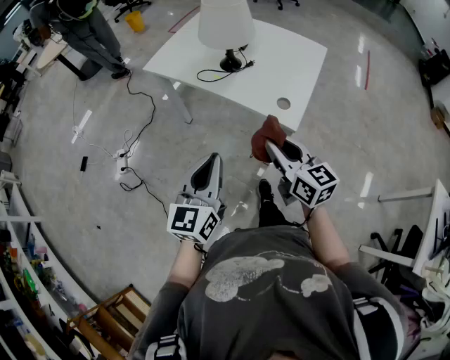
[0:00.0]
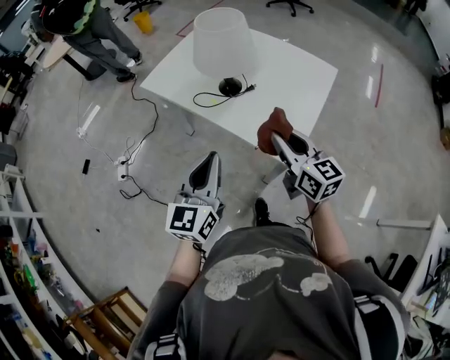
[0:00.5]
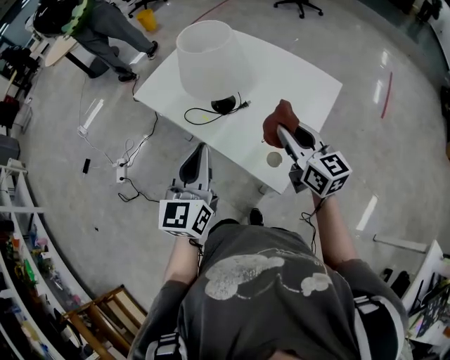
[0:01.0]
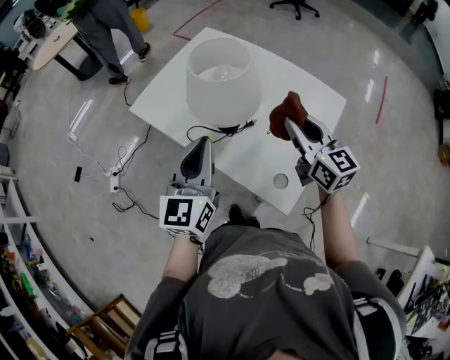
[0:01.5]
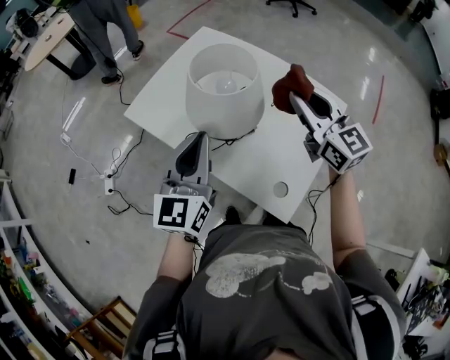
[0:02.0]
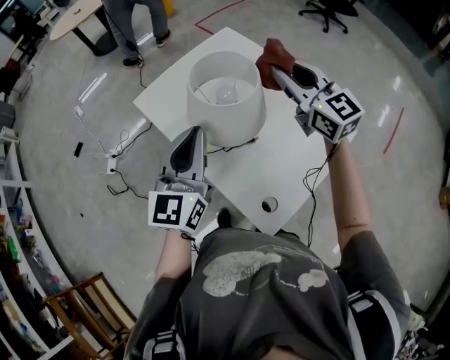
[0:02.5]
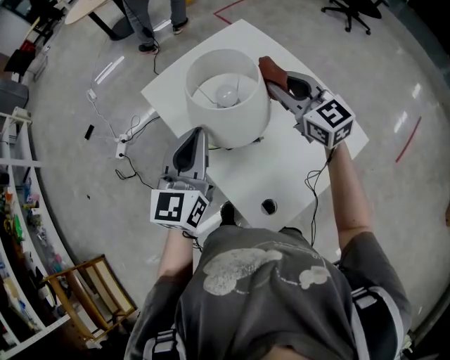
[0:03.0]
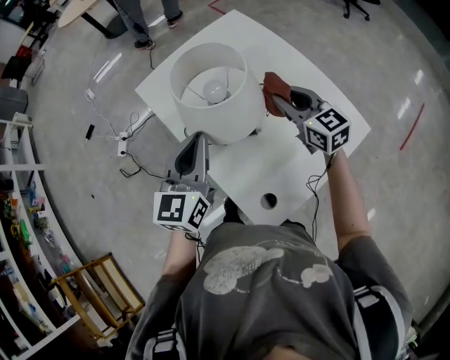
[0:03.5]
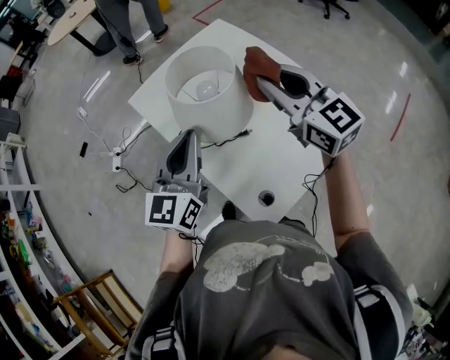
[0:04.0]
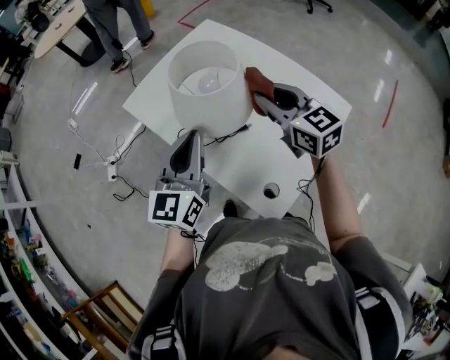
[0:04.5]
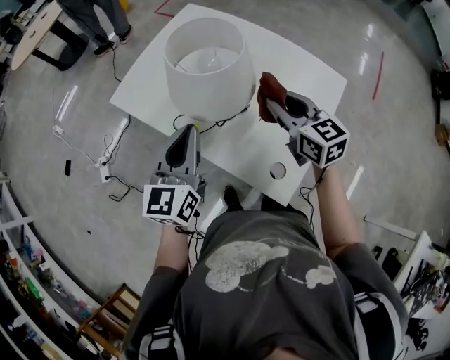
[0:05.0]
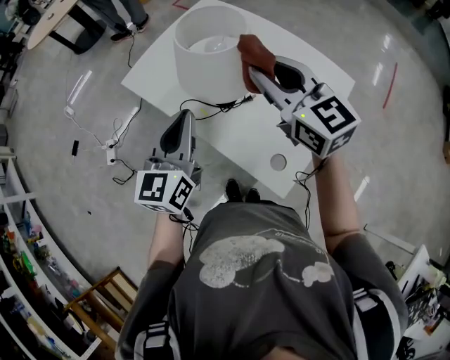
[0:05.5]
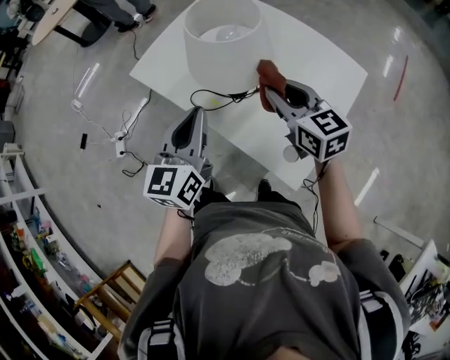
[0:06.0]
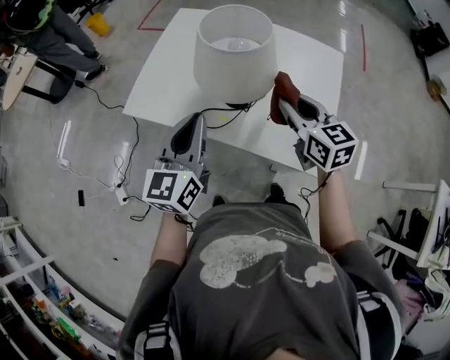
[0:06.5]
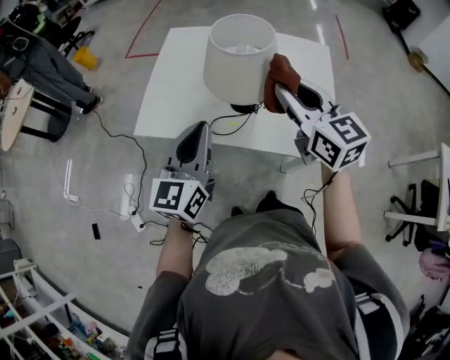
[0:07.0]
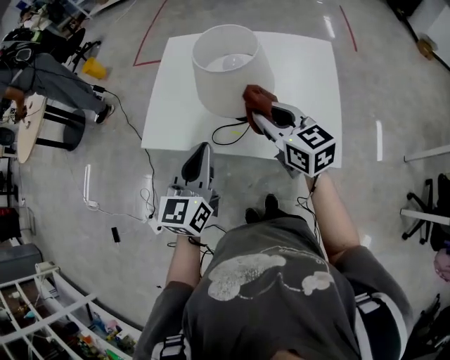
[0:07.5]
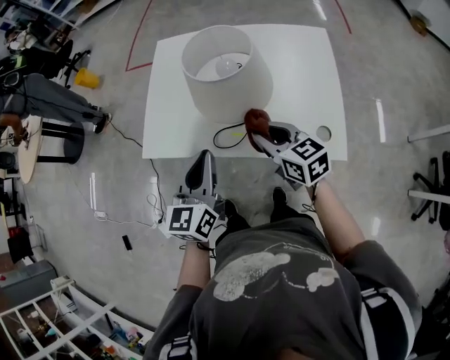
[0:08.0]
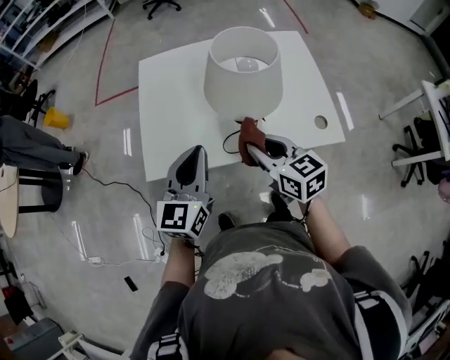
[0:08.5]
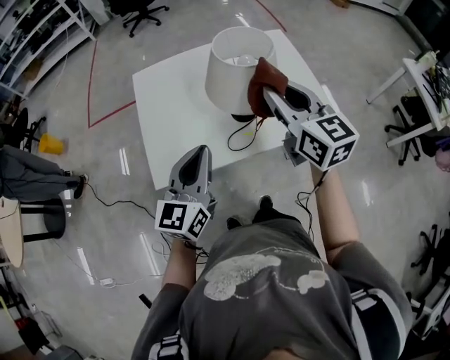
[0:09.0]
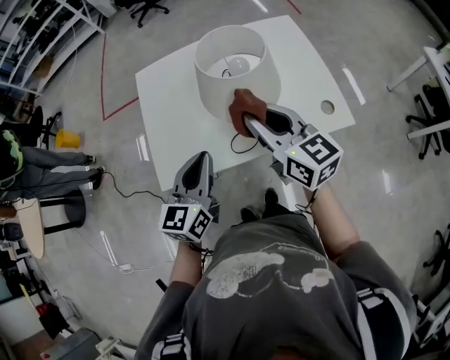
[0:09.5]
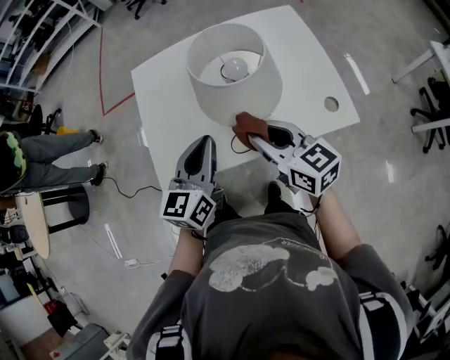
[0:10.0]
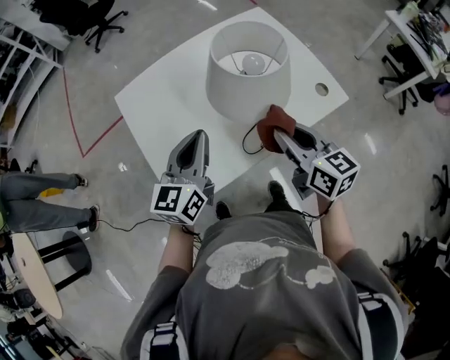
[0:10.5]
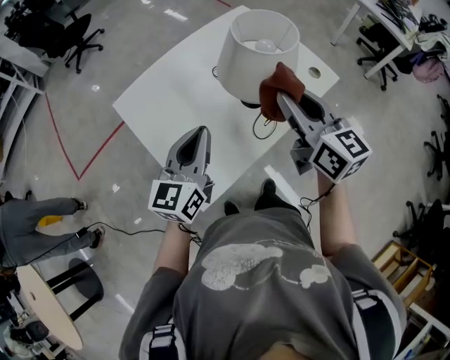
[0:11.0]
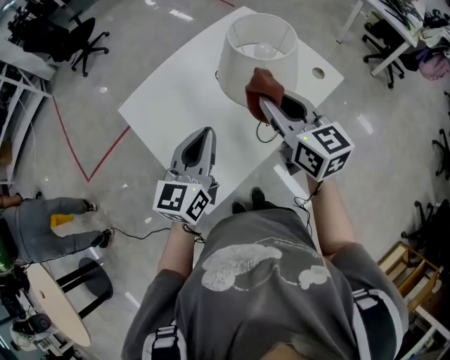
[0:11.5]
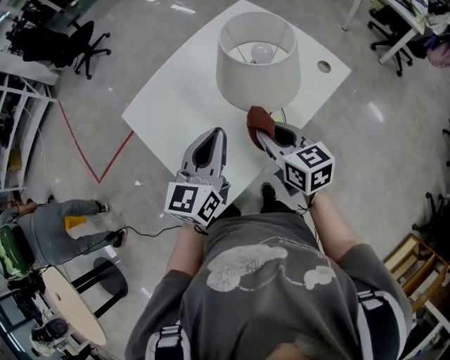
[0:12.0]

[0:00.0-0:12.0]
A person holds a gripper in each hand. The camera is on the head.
0:00.0 to 0:02.0: The right gripper heads forward and to the right, covering some 40 cm, and rotates about 20 degrees, while the left gripper heads forward, covering about 35 cm.
0:02.0 to 0:04.0: The right gripper travels forward by roughly 5 cm, reaches some 15 cm downward, then returns, and changes its angle by approximately 20 degrees.
0:04.0 to 0:06.0: The left gripper is displaced to the left by roughly 5 cm. Meanwhile the right gripper goes up and down, about 15 cm each way, reversing 2 times, and turns by about 30 degrees.
0:06.0 to 0:08.0: The left gripper shifts by approximately 10 cm, and swivels about 30 degrees; the right gripper moves about 10 cm upward and comes back, and changes its angle by approximately 30 degrees.
0:08.0 to 0:10.0: The right gripper reaches approximately 15 cm upward, then returns, and swivels about 20 degrees; the left gripper moves about 10 cm, and rotates about 30 degrees.
0:10.0 to 0:12.0: The left gripper moves about 10 cm, and turns by some 30 degrees; the right gripper reaches roughly 10 cm upward, then returns, and rotates some 40 degrees.

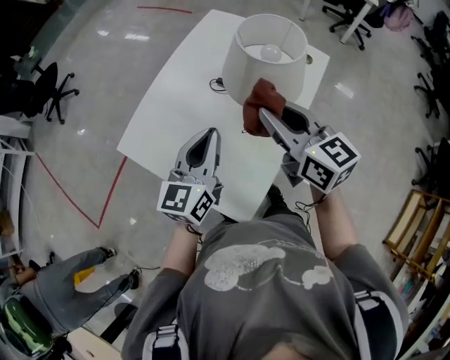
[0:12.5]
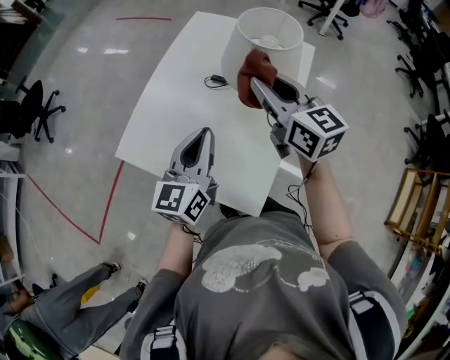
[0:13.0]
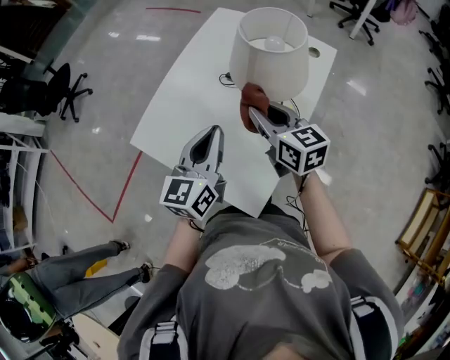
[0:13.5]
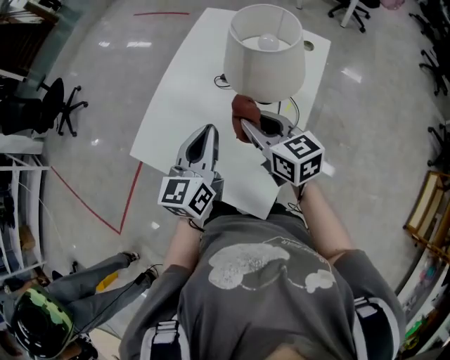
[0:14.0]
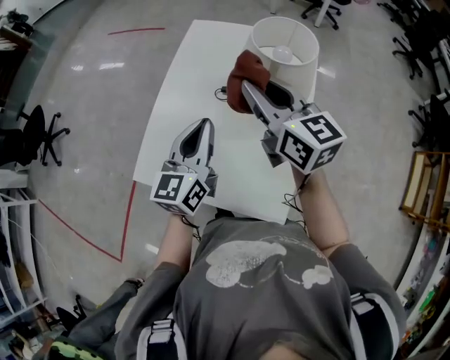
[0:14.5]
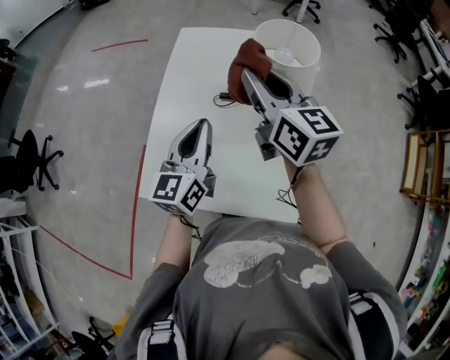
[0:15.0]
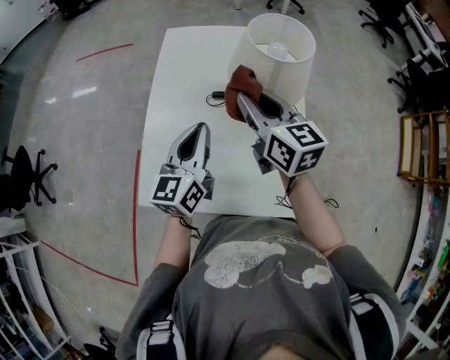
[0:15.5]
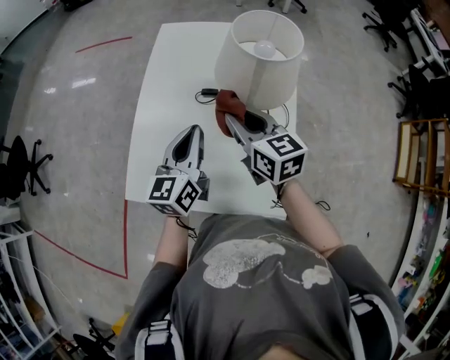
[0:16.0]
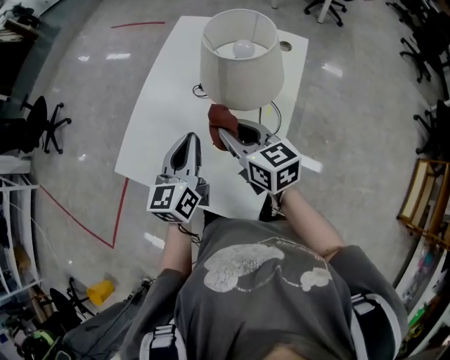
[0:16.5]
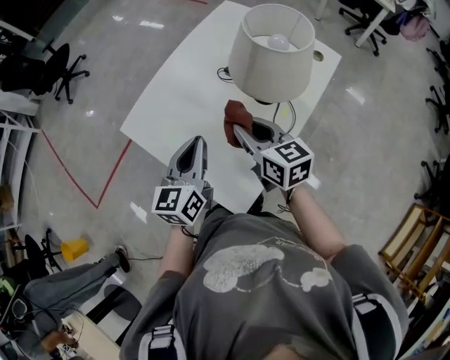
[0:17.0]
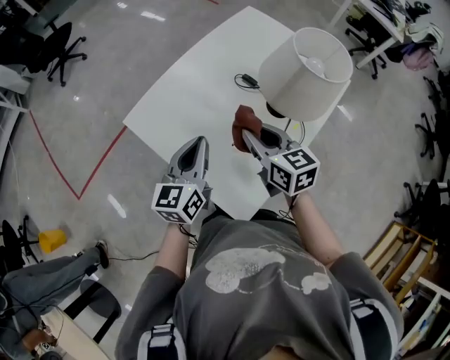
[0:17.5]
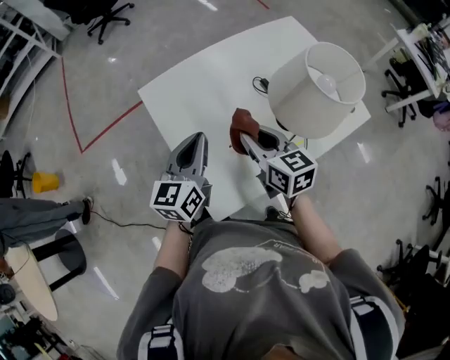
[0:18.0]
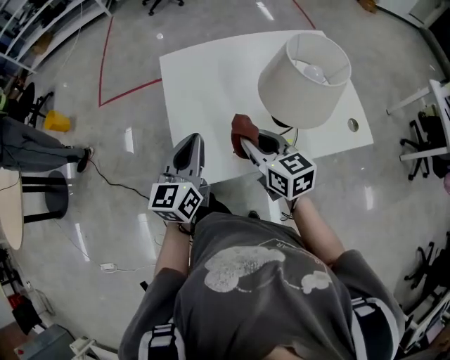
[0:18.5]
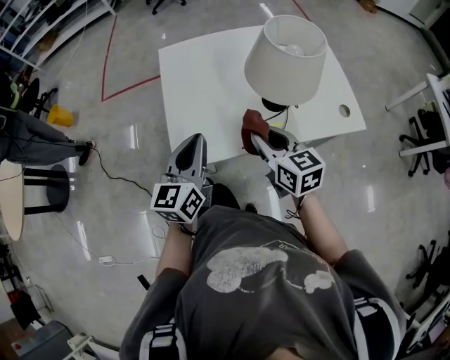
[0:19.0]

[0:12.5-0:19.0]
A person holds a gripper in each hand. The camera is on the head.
0:12.5 to 0:14.5: Both grippers move to the left and forward, approximately 10 cm. The right gripper goes downward and returns, some 10 cm each way.
0:14.5 to 0:17.0: The right gripper is displaced downward by some 15 cm, and rotates approximately 30 degrees. The left gripper shifts by roughly 15 cm, and swivels some 20 degrees.
0:17.0 to 0:19.0: The right gripper ends up some 15 cm from where it was, and swivels approximately 40 degrees. The left gripper changes place by roughly 15 cm, and changes its angle by some 40 degrees.

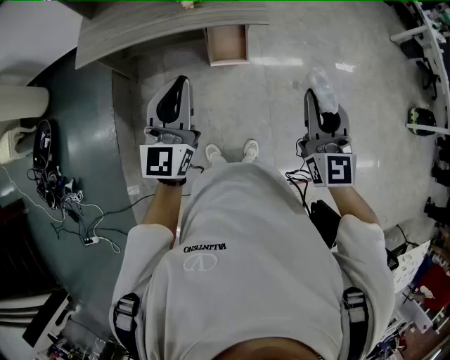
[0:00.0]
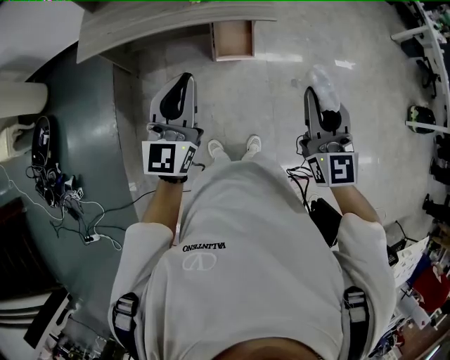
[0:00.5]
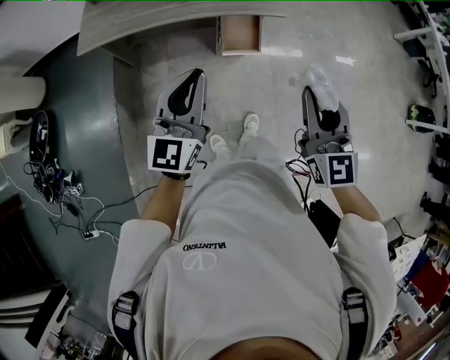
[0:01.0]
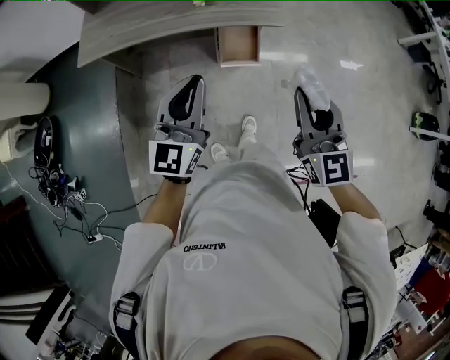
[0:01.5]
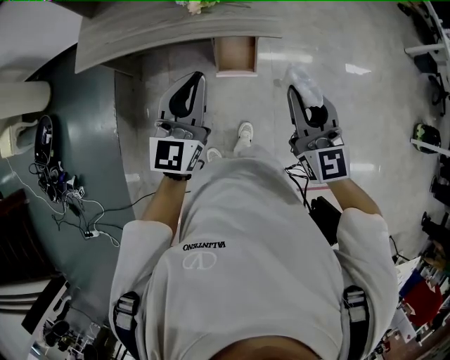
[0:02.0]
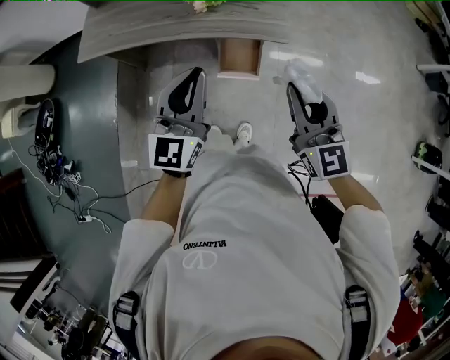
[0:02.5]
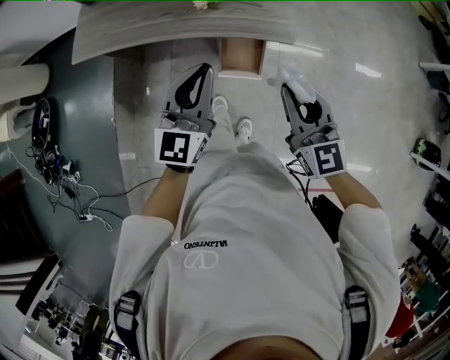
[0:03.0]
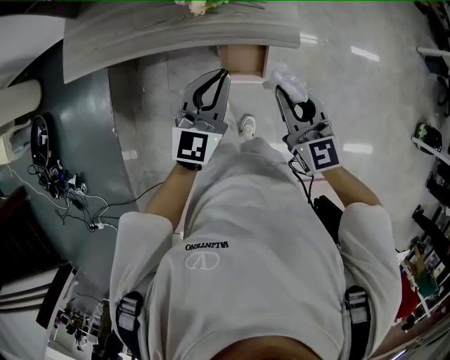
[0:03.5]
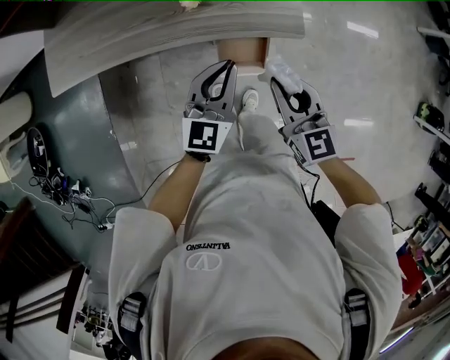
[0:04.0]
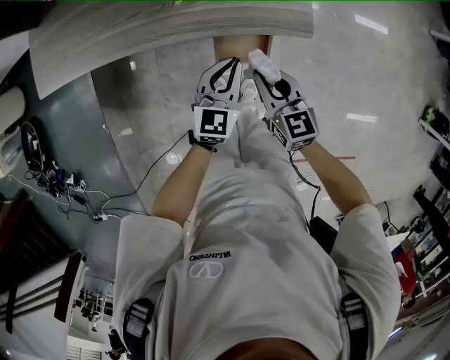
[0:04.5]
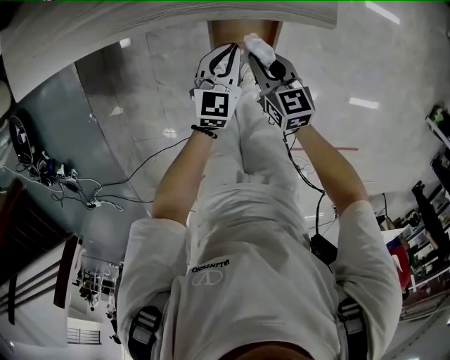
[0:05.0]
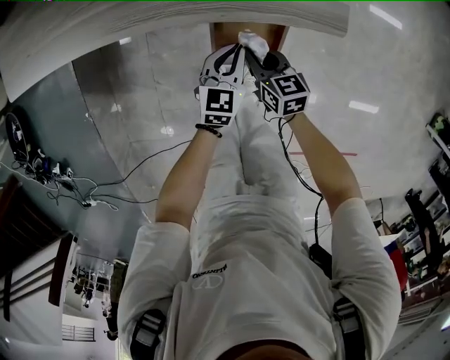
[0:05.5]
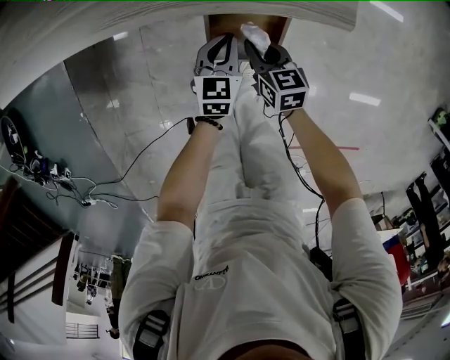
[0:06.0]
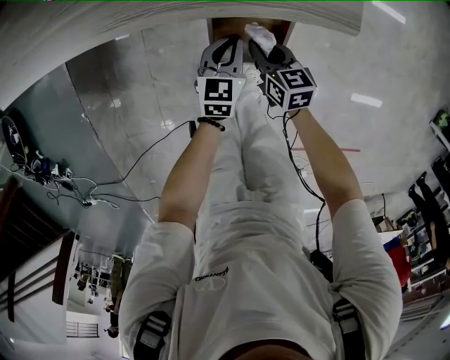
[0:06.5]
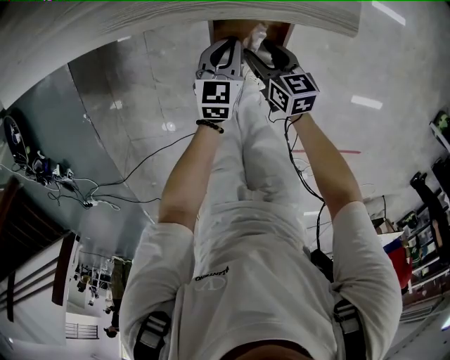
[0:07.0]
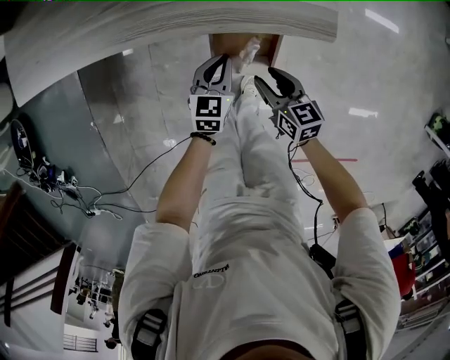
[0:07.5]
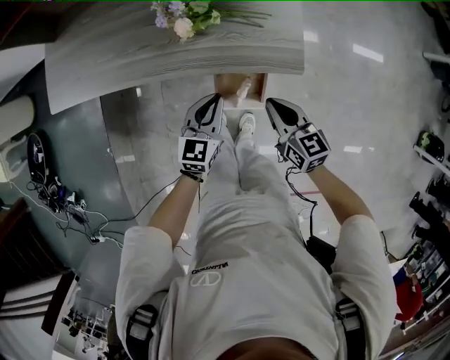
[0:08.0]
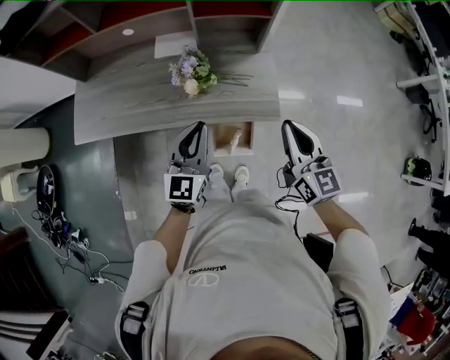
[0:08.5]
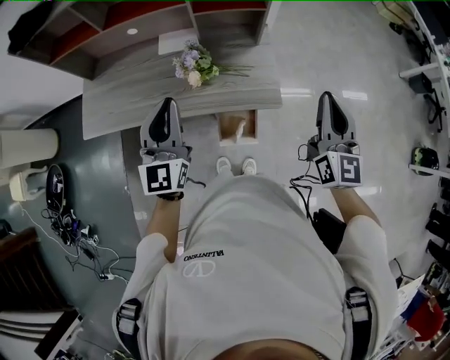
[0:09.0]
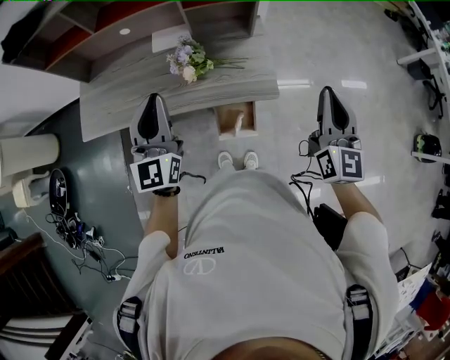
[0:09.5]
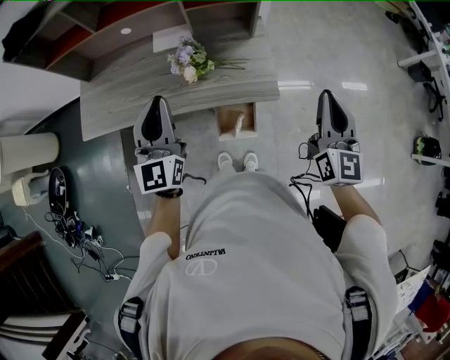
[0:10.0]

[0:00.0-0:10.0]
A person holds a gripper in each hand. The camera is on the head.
0:00.0 to 0:02.0: The two grippers go approximately 15 cm forward.
0:02.0 to 0:04.0: Both grippers move forward and downward, some 25 cm.
0:04.0 to 0:06.0: Both grippers move downward, roughly 40 cm. The left gripper changes its angle by roughly 30 degrees. Meanwhile the right gripper changes its angle by about 30 degrees.
0:06.0 to 0:08.0: The two grippers go about 25 cm upward. The right gripper opens and closes again.
0:08.0 to 0:10.0: The grippers both shift upward by about 35 cm. The left gripper changes its angle by about 30 degrees. Meanwhile the right gripper swivels some 40 degrees.
